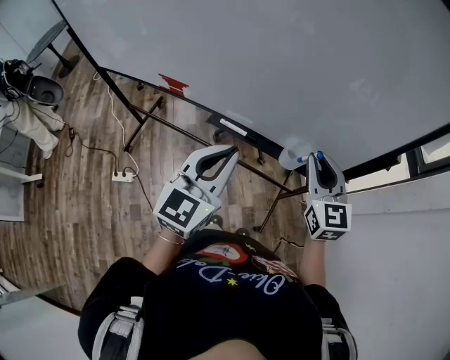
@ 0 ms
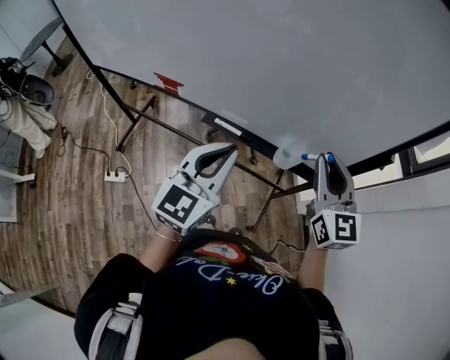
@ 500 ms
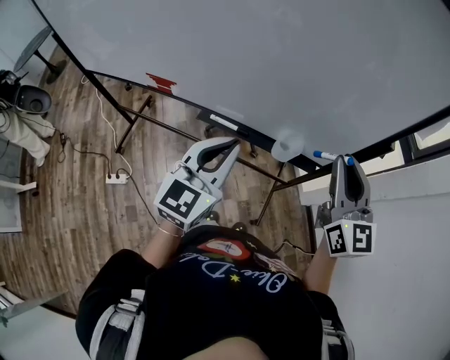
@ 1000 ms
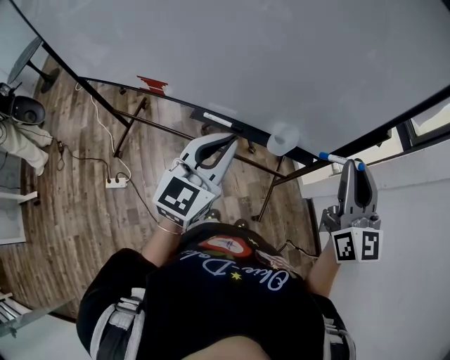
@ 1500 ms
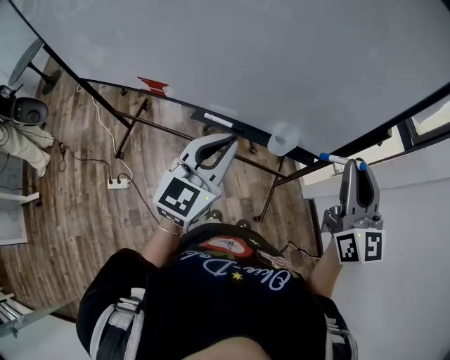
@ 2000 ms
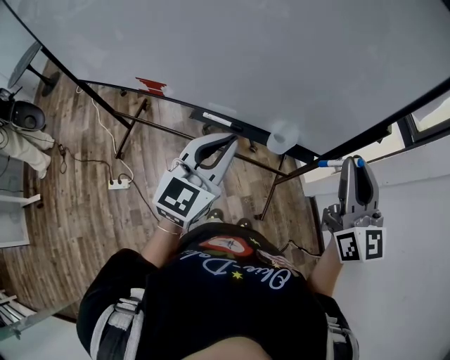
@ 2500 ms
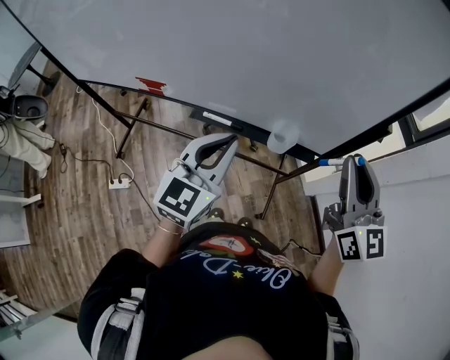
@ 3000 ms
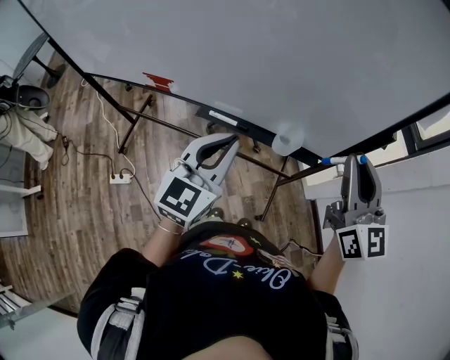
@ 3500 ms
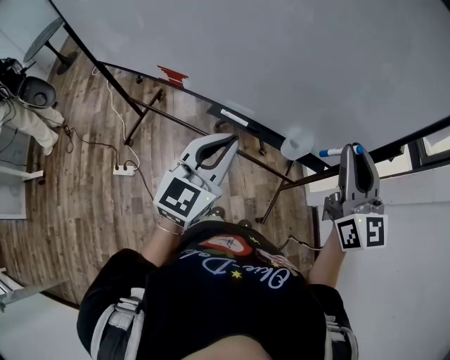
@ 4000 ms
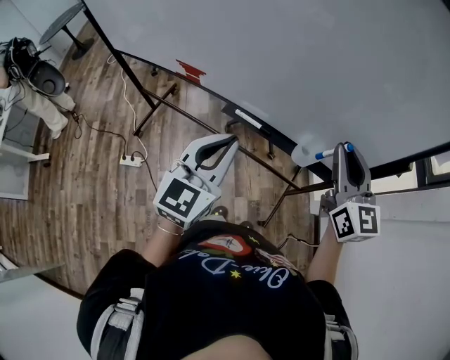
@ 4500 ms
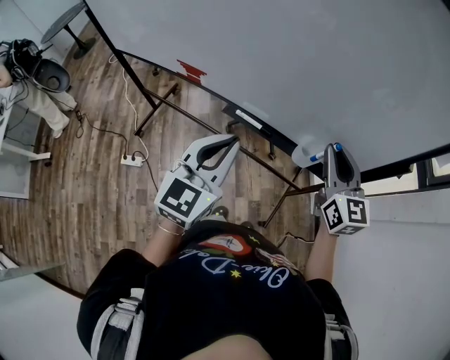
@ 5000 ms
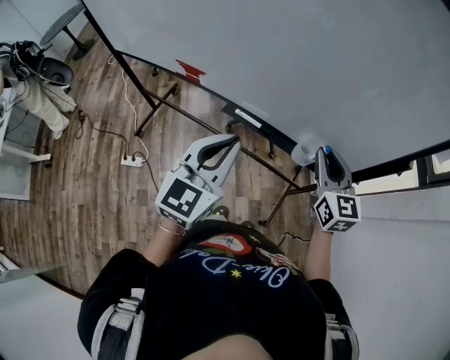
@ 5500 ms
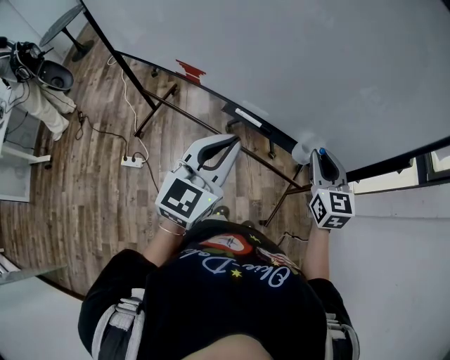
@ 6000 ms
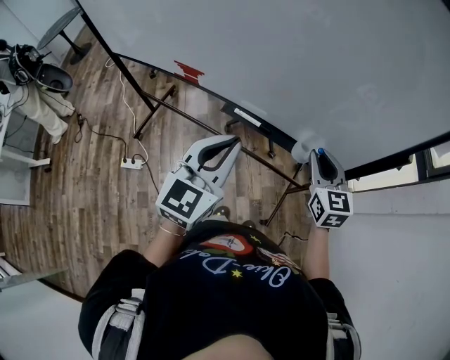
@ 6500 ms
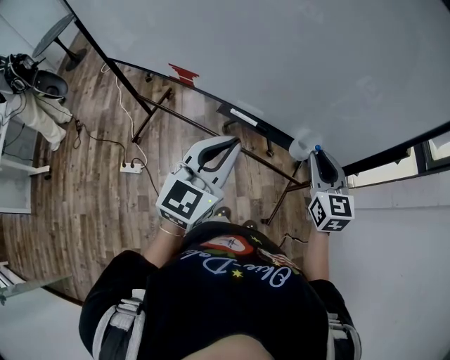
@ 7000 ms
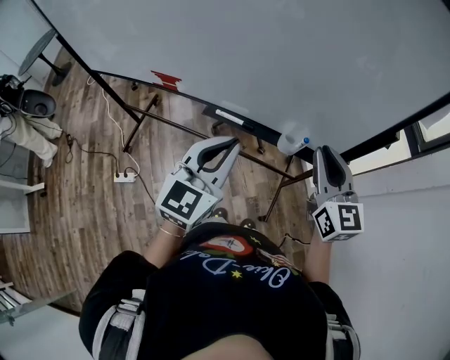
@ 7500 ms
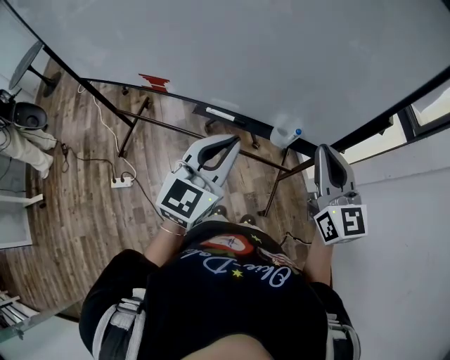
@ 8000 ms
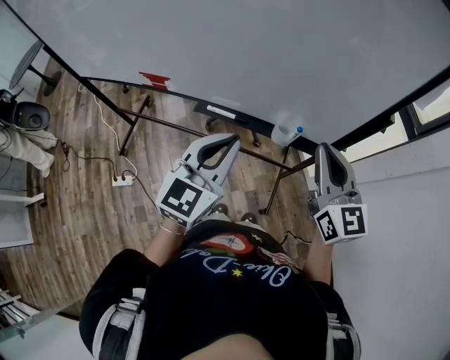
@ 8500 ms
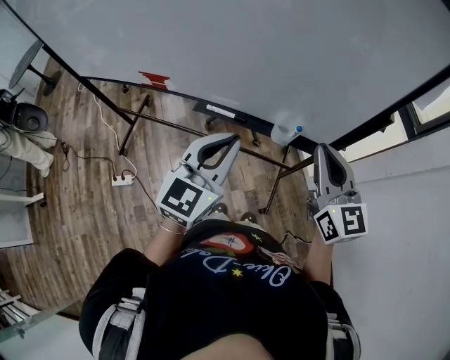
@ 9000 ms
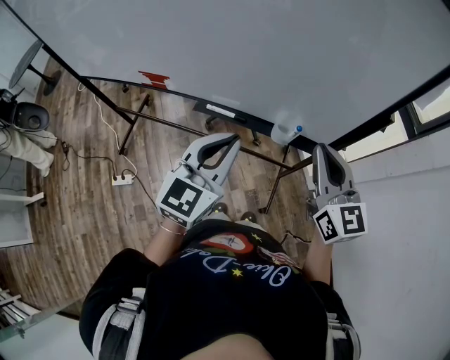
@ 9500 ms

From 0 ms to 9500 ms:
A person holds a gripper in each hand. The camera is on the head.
From 0 ms to 2000 ms: The right gripper goes about 15 cm upward, to the right and backward.
From 2000 ms to 4000 ms: The right gripper moves to the left, some 5 cm.
From 4000 ms to 5500 ms: The right gripper travels downward by some 15 cm.
From 5500 ms to 7500 ms: The right gripper goes approximately 5 cm upward.
From 7500 ms to 9500 ms: The grippers stay close to where they were, moving slightly.

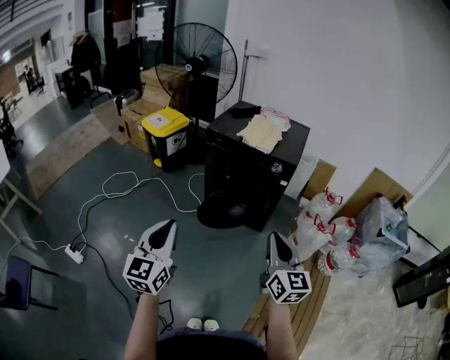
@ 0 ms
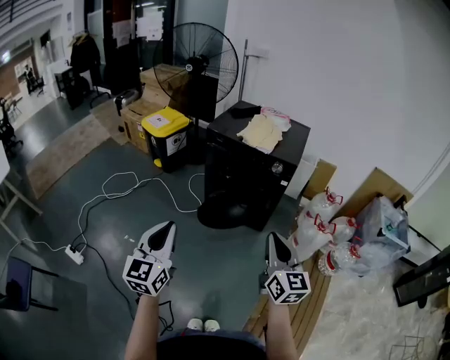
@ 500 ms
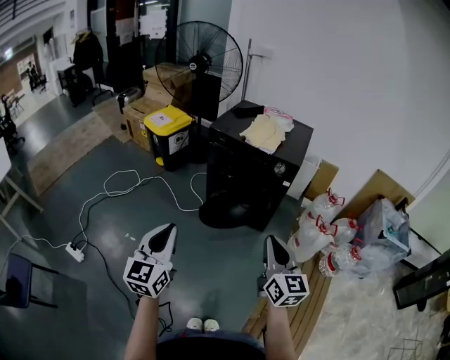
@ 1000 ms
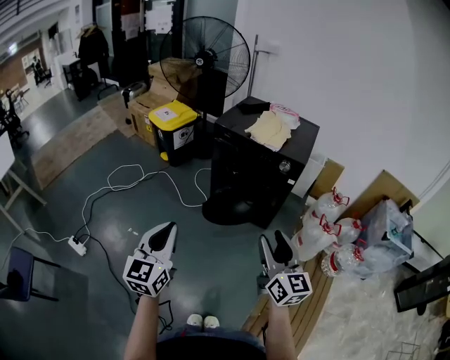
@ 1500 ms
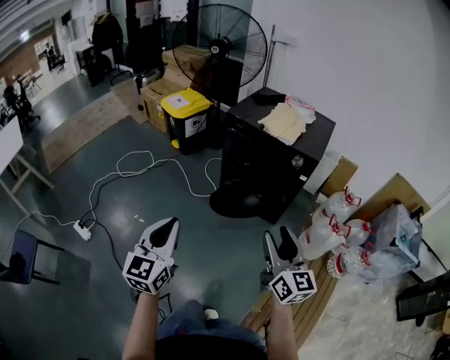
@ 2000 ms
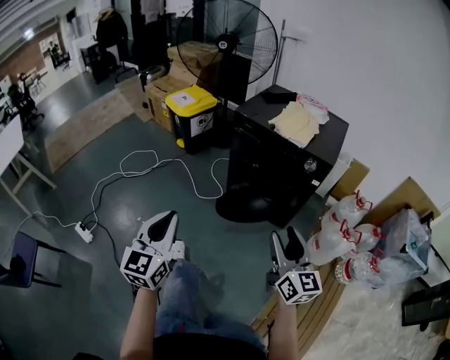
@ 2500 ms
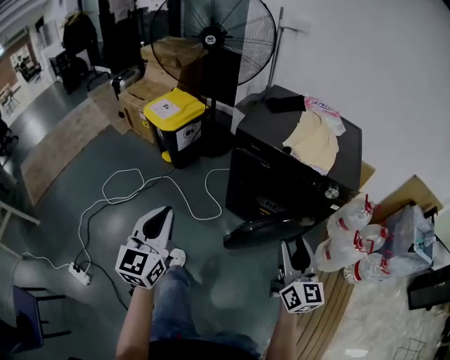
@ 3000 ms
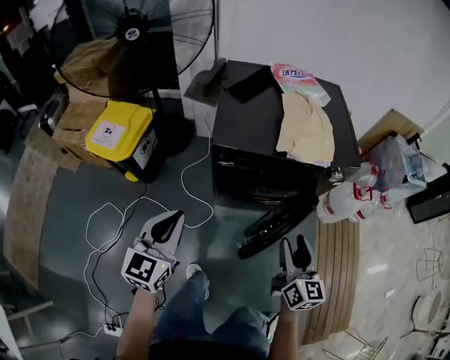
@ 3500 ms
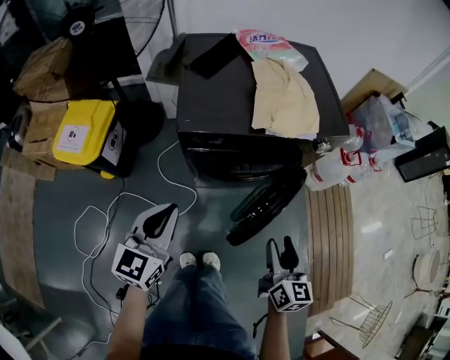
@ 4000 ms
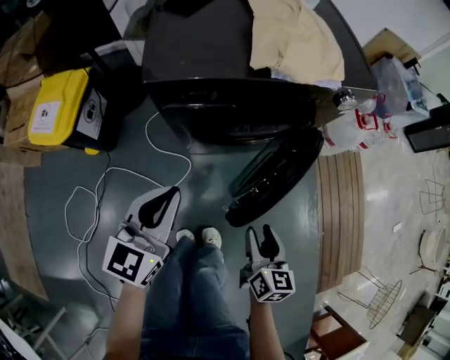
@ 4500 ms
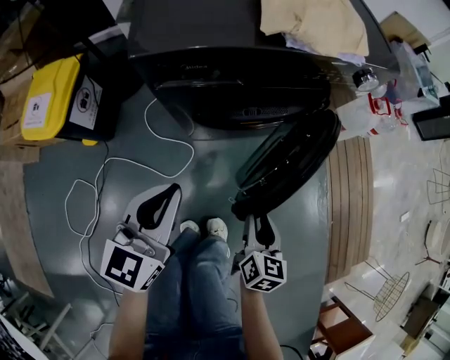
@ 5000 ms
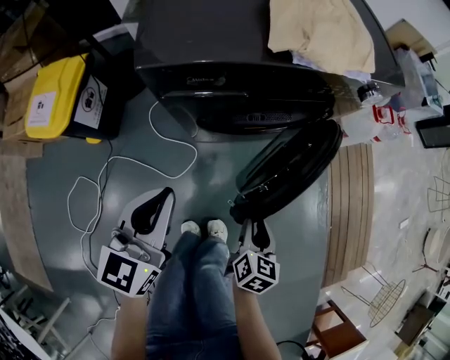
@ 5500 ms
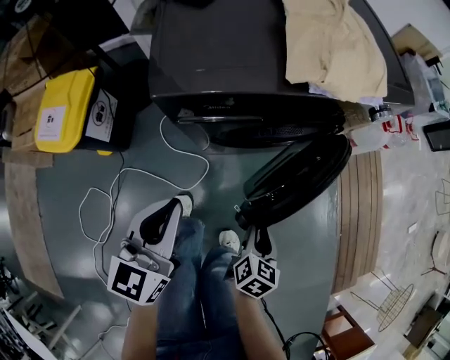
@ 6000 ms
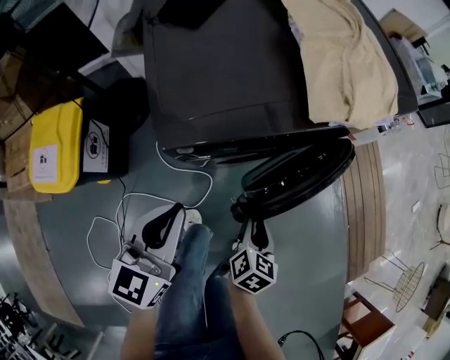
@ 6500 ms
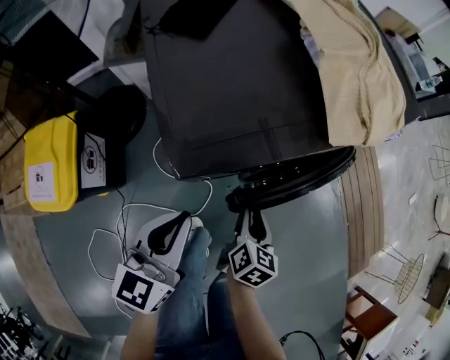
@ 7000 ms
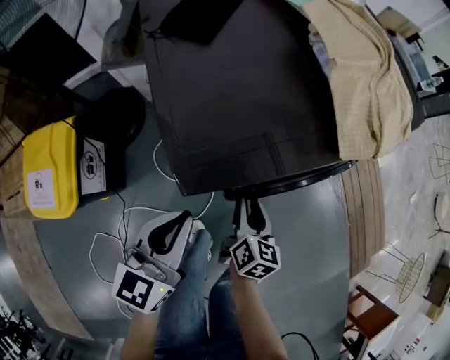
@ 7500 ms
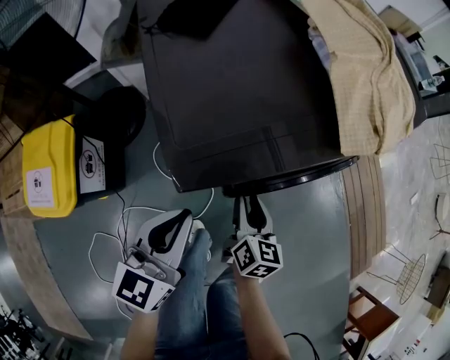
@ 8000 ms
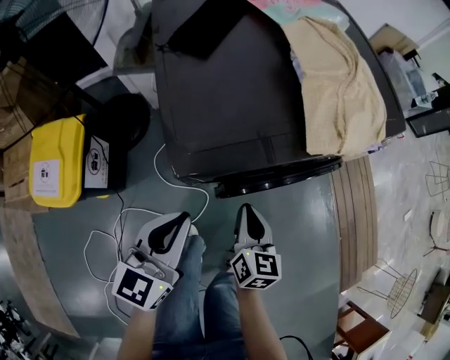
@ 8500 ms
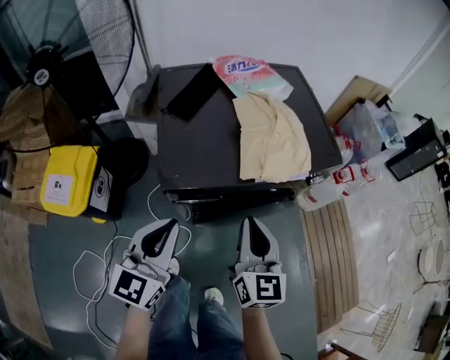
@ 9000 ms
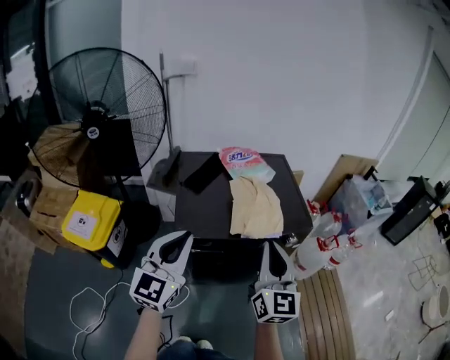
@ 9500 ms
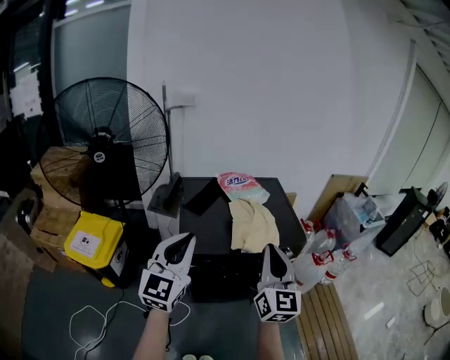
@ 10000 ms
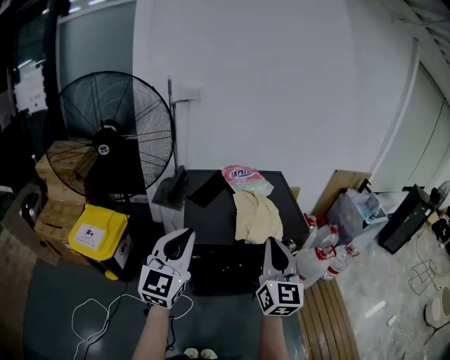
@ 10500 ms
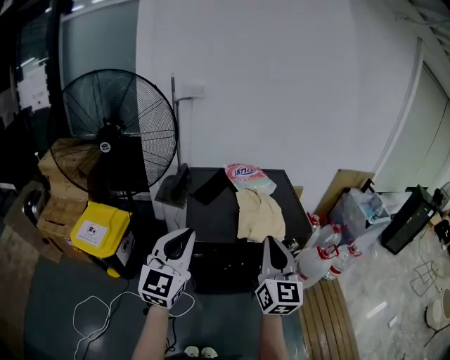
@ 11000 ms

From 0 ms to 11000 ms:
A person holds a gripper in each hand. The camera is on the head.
From 0 ms to 2000 ms: The right gripper opens its fingers.
From 2000 ms to 3500 ms: Both grippers are carried some 50 cm. The left gripper turns by roughly 40 degrees; the right gripper swivels about 40 degrees.
From 3500 ms to 5500 ms: The right gripper goes some 30 cm downward, and turns by roughly 40 degrees. The left gripper shifts approximately 20 cm downward and forward.
From 5500 ms to 7500 ms: The right gripper is displaced to the left and forward by about 25 cm. Meanwhile the left gripper travels to the left and forward by about 15 cm.
From 7500 ms to 9000 ms: The left gripper shifts approximately 20 cm upward and to the right. The right gripper goes roughly 30 cm upward, swivels roughly 40 degrees, and closes up.
From 9000 ms to 11000 ms: The two grippers go about 20 cm upward. The left gripper swivels approximately 20 degrees.

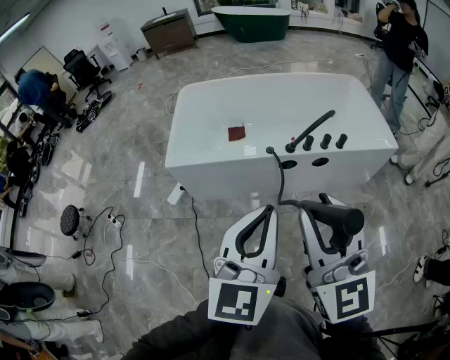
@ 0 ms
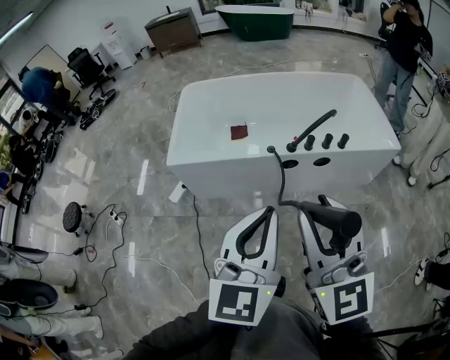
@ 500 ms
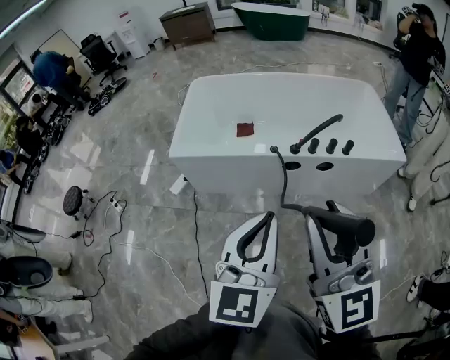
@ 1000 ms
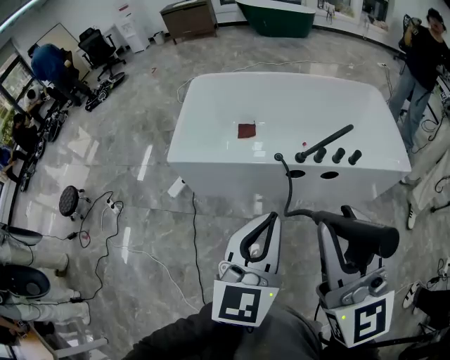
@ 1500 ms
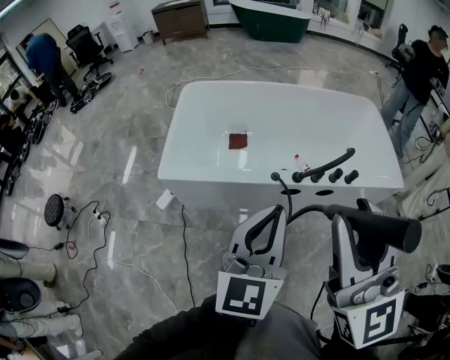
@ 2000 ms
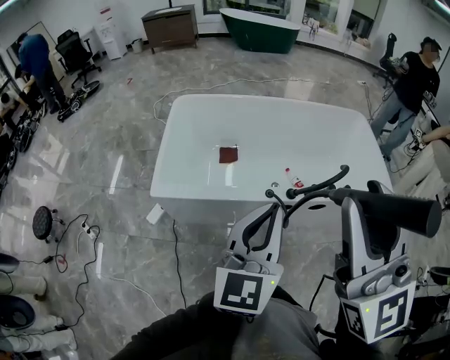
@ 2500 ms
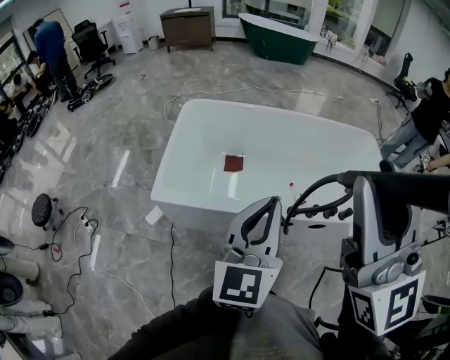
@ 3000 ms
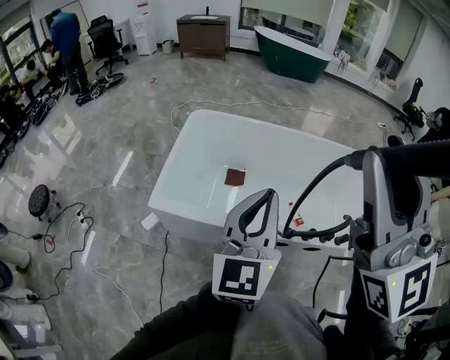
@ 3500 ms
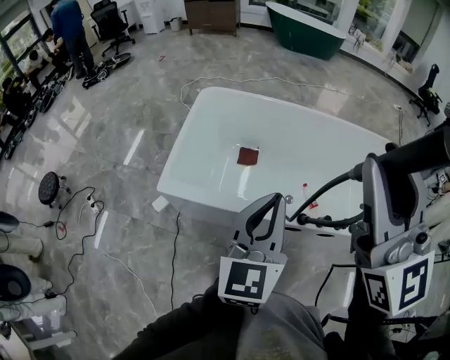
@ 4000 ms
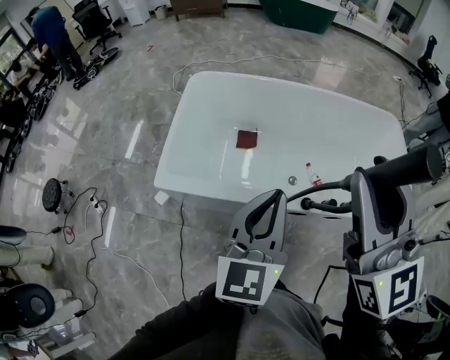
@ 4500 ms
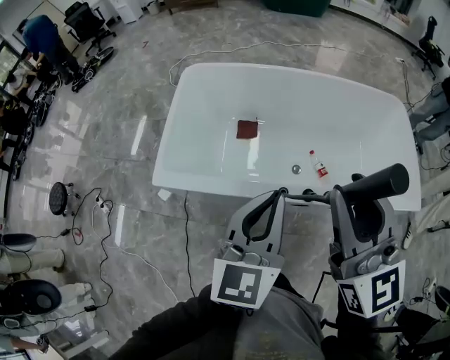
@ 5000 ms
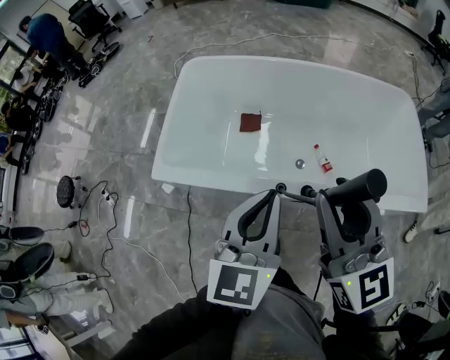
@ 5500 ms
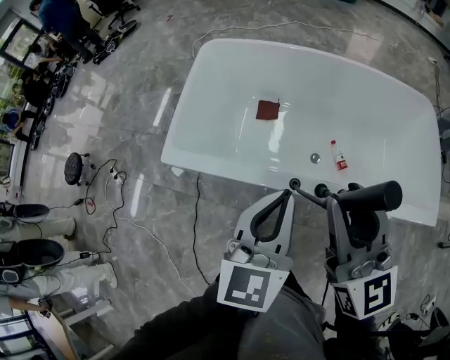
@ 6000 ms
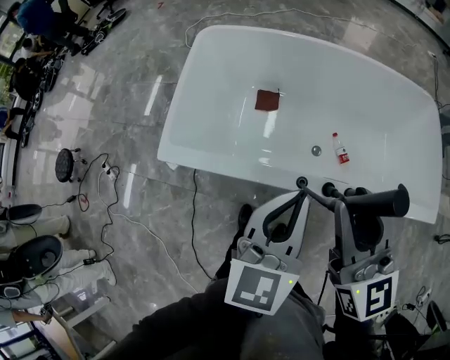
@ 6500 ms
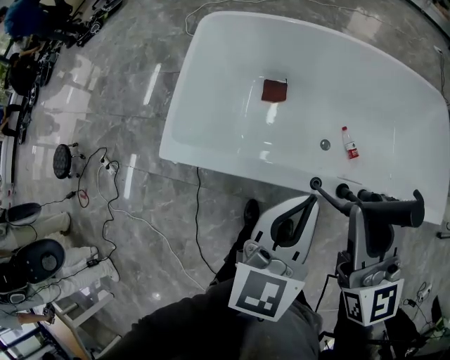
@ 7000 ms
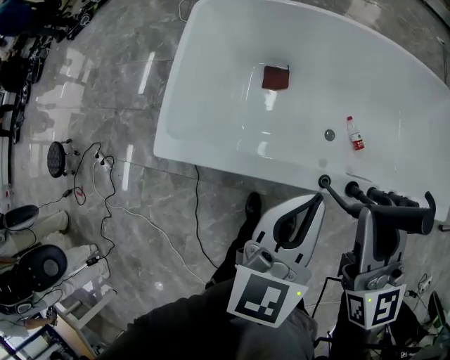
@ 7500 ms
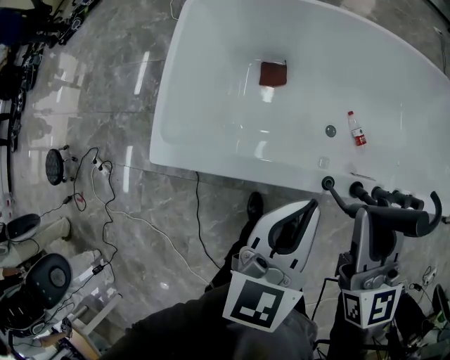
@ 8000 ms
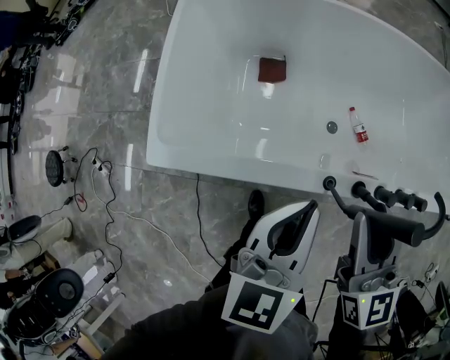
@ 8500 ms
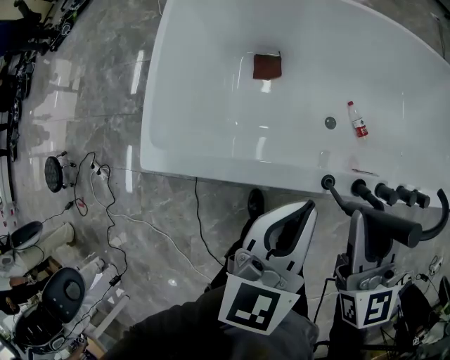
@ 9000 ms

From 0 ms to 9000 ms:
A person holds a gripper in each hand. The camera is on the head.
From 0 ms to 2000 ms: The two grippers go about 15 cm forward.
From 2000 ms to 4500 ms: Both grippers travel together forward, some 20 cm.
From 4500 ms to 7000 ms: The left gripper is displaced downward and forward by about 15 cm. Meanwhile the right gripper heads downward, covering some 20 cm, and rotates roughly 20 degrees.
From 7000 ms to 9000 ms: The grippers both shift downward by some 10 cm.
